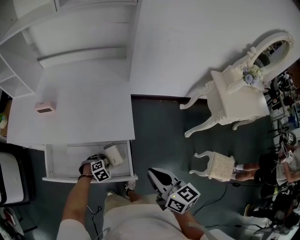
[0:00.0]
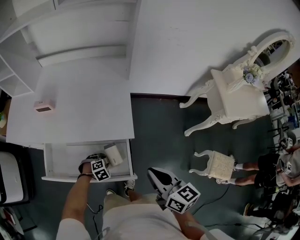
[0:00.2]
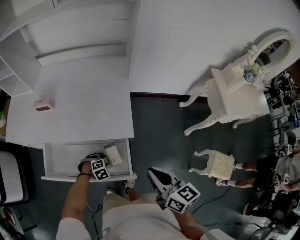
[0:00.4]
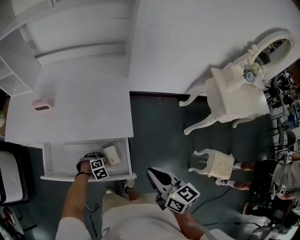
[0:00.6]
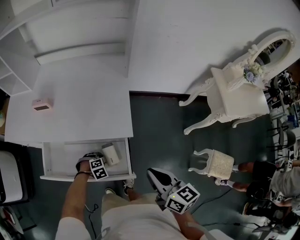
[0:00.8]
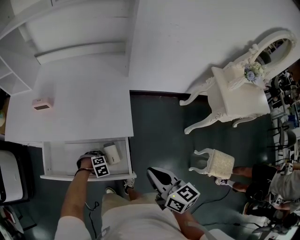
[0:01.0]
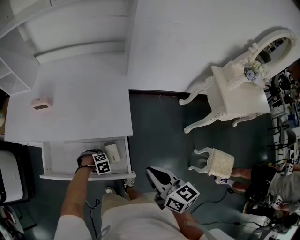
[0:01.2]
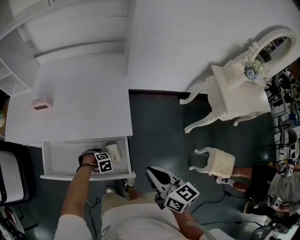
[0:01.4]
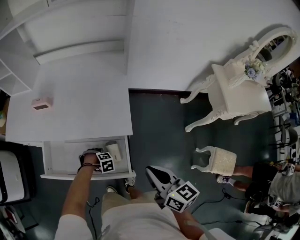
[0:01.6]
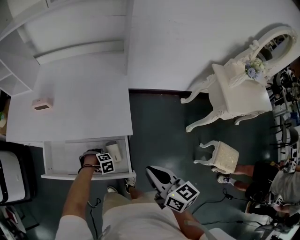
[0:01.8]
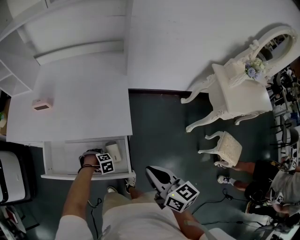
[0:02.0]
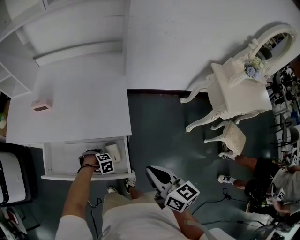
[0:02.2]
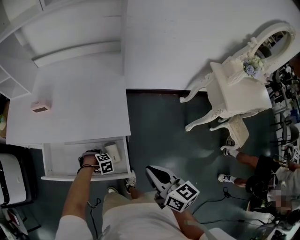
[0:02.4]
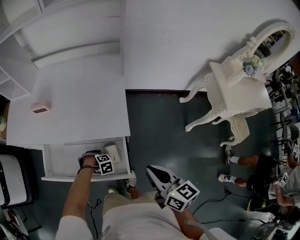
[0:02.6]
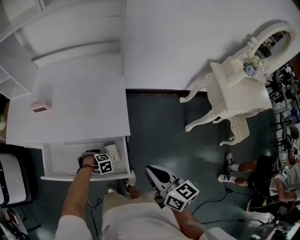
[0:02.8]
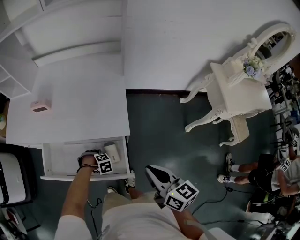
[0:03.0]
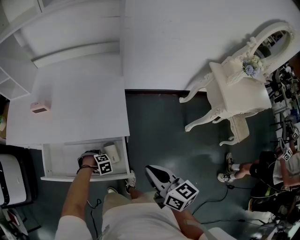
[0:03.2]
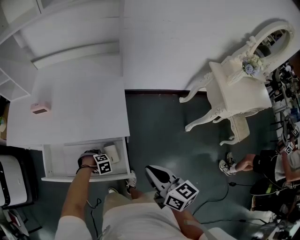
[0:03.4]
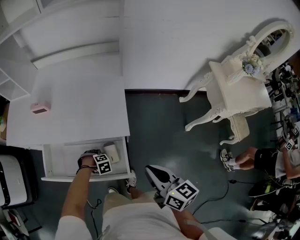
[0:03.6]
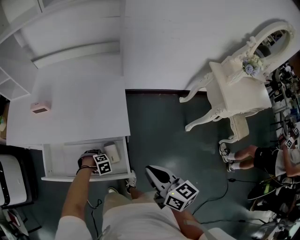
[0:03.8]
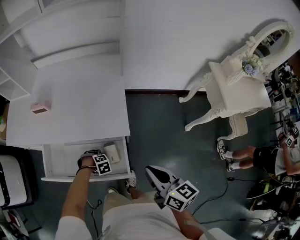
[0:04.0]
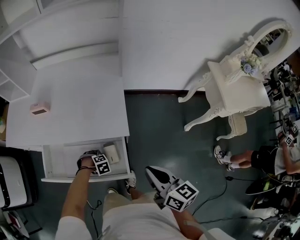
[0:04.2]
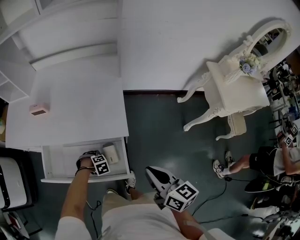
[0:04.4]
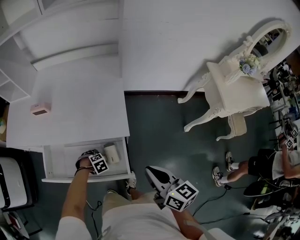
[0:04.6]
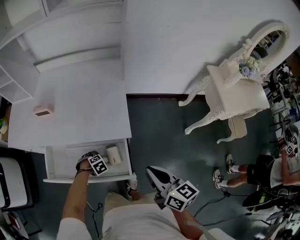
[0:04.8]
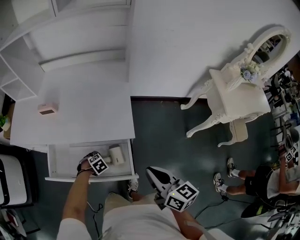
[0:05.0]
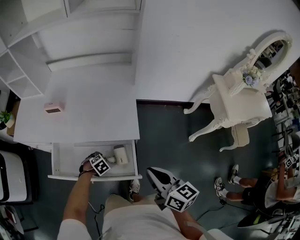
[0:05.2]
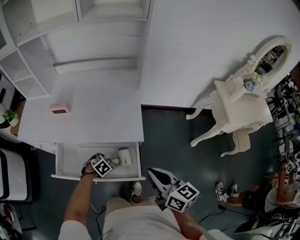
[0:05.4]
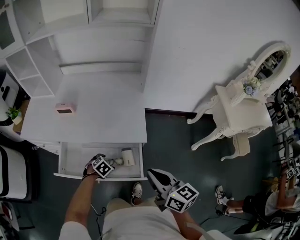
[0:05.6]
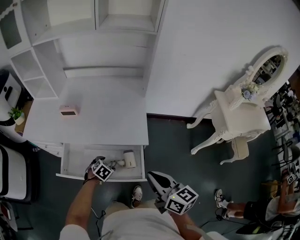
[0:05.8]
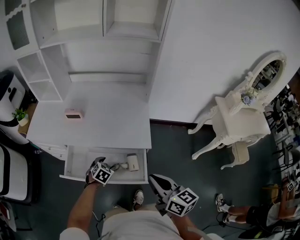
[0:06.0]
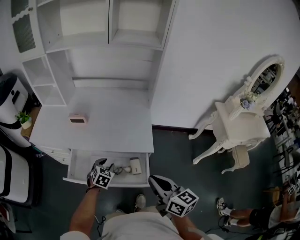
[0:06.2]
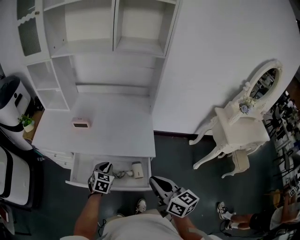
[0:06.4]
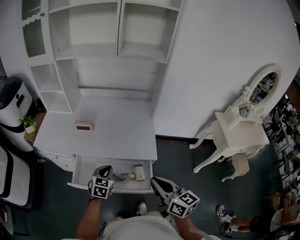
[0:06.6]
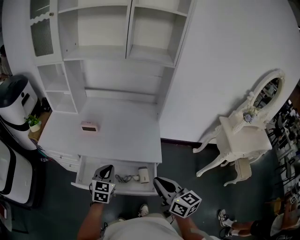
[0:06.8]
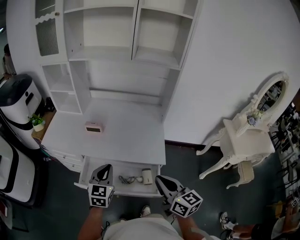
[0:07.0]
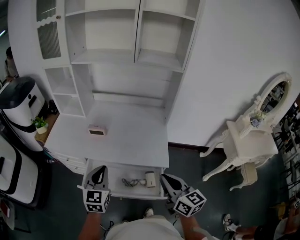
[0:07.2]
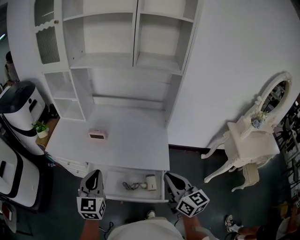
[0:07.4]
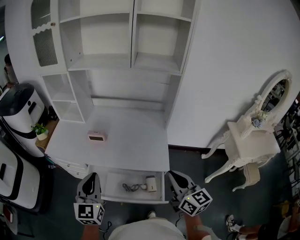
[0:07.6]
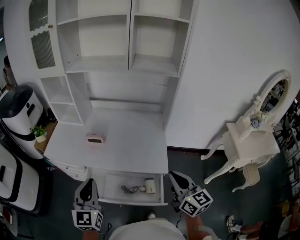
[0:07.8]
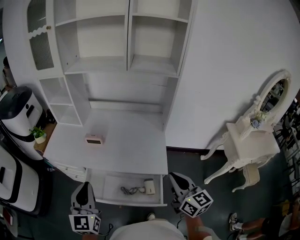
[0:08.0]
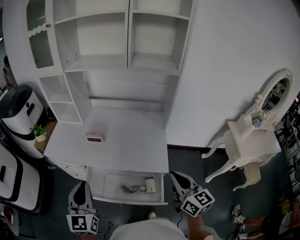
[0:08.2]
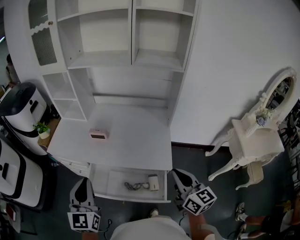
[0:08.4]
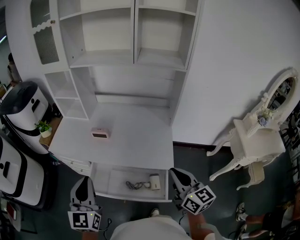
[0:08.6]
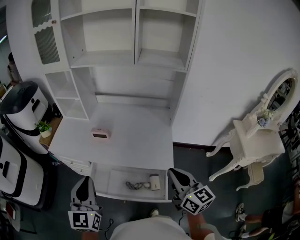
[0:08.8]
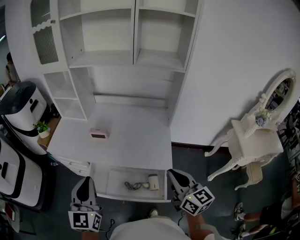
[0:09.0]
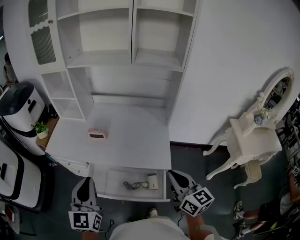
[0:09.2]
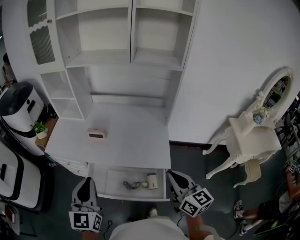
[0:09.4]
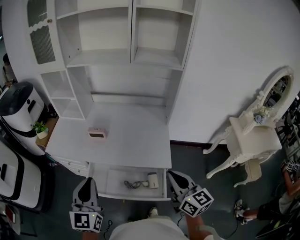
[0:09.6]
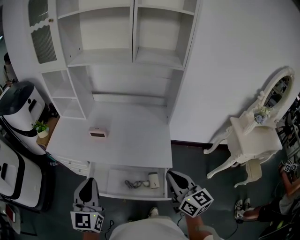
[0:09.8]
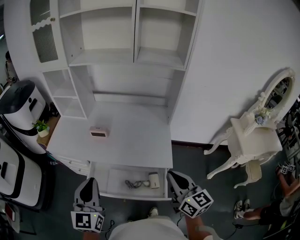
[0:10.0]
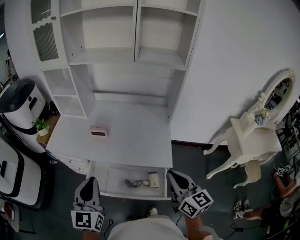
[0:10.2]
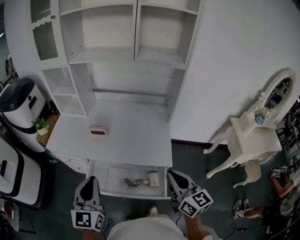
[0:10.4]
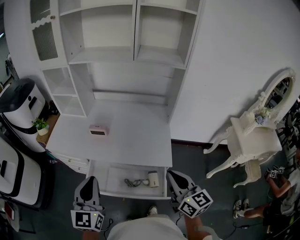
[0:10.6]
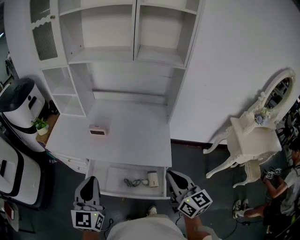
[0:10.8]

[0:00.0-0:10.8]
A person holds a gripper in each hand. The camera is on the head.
0:00.0 to 0:01.6: The left gripper turns by approximately 30 degrees.
0:01.6 to 0:03.0: Both grippers stay put.
0:03.0 to 0:04.6: The left gripper opens up.
0:04.6 to 0:06.2: The right gripper ends up roughly 15 cm from where it was; the left gripper heads upward, covering some 20 cm, points its fingers about 40 degrees further upward, and closes up.
0:06.2 to 0:07.8: The left gripper goes approximately 35 cm upward and to the left, tips its fingers upward by about 50 degrees, and closes up. The right gripper shifts some 10 cm forward and upward.
0:07.8 to 0:10.8: The grippers make only small movements.

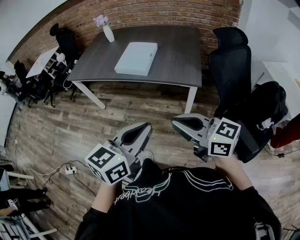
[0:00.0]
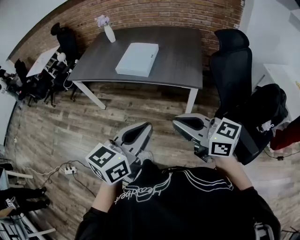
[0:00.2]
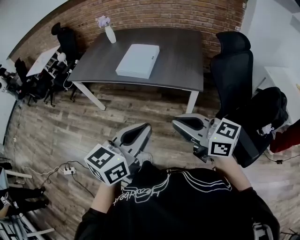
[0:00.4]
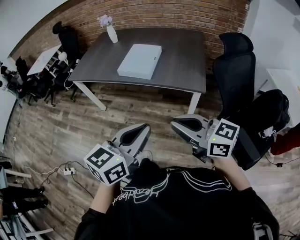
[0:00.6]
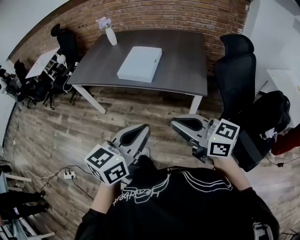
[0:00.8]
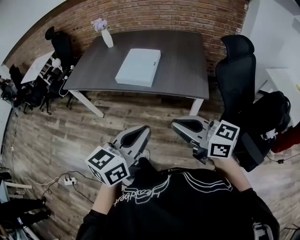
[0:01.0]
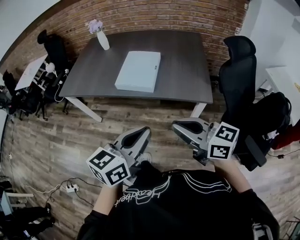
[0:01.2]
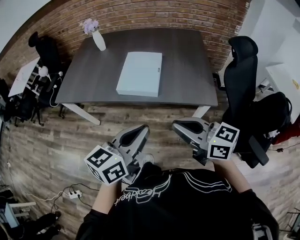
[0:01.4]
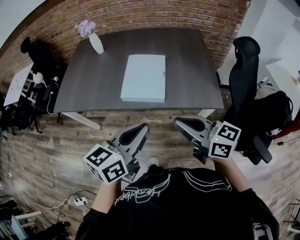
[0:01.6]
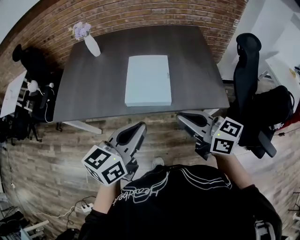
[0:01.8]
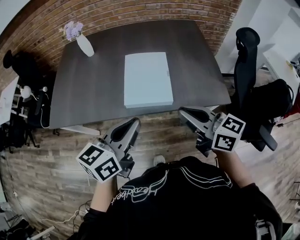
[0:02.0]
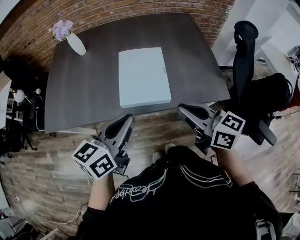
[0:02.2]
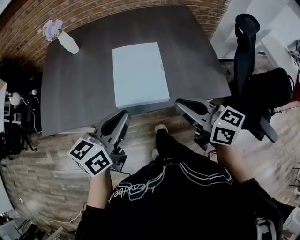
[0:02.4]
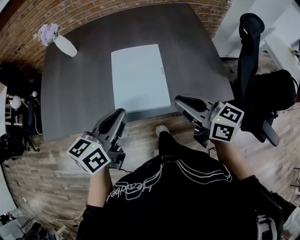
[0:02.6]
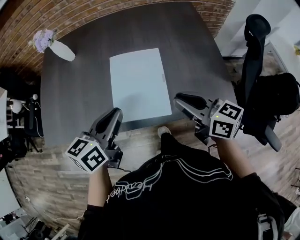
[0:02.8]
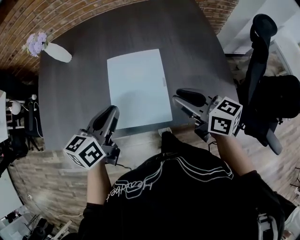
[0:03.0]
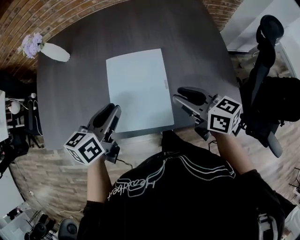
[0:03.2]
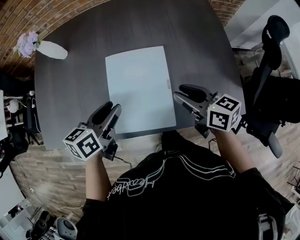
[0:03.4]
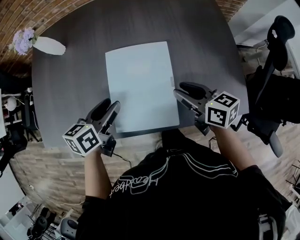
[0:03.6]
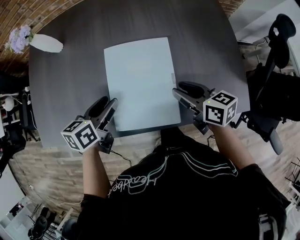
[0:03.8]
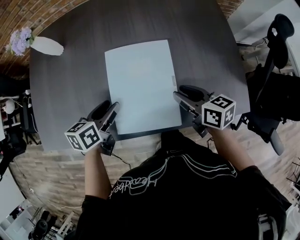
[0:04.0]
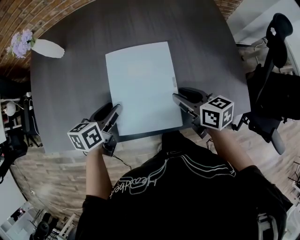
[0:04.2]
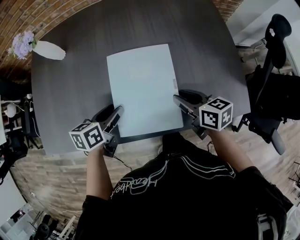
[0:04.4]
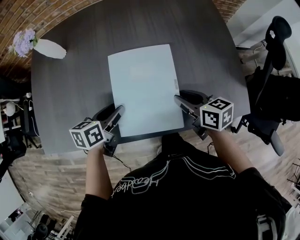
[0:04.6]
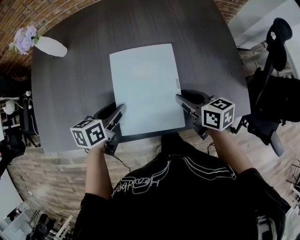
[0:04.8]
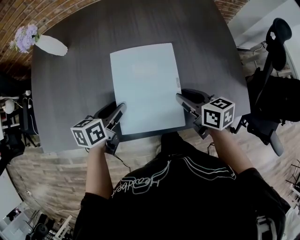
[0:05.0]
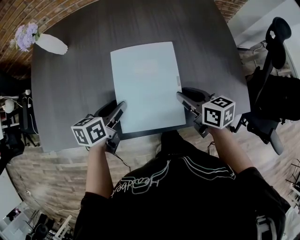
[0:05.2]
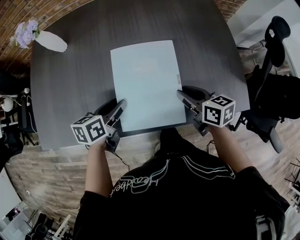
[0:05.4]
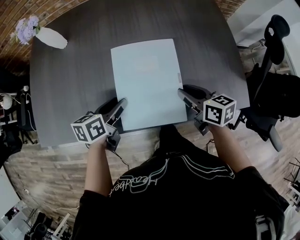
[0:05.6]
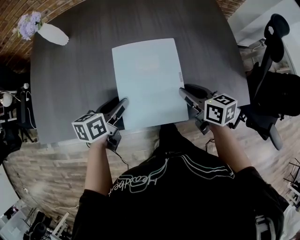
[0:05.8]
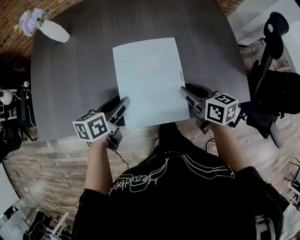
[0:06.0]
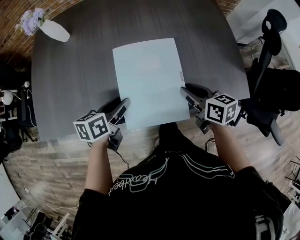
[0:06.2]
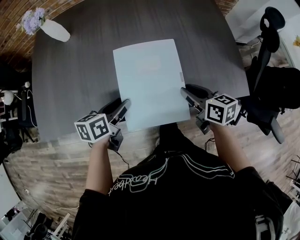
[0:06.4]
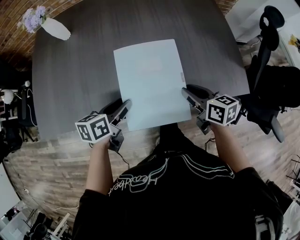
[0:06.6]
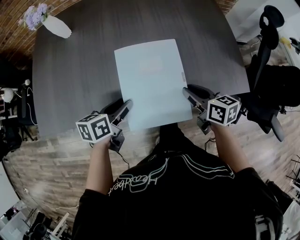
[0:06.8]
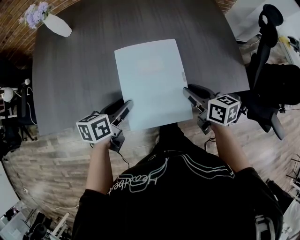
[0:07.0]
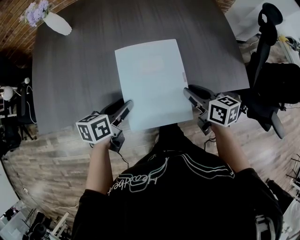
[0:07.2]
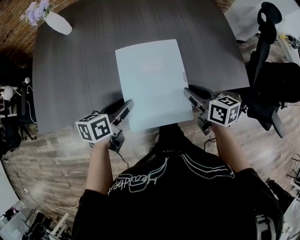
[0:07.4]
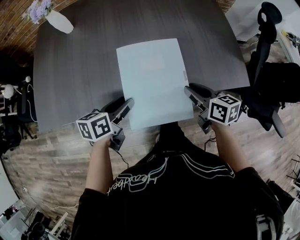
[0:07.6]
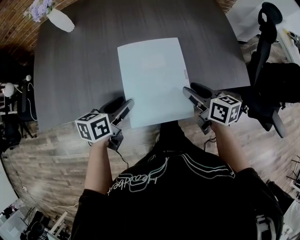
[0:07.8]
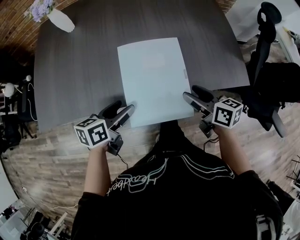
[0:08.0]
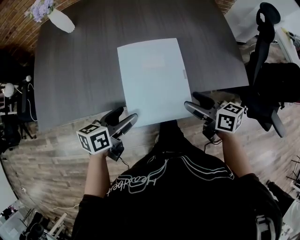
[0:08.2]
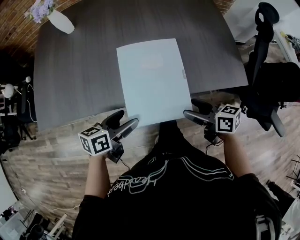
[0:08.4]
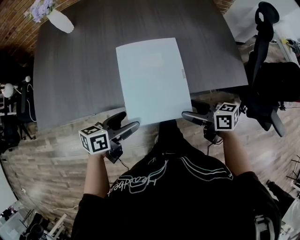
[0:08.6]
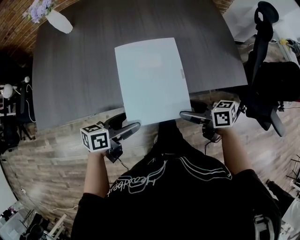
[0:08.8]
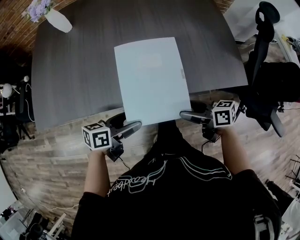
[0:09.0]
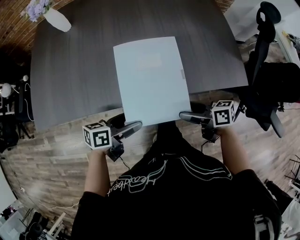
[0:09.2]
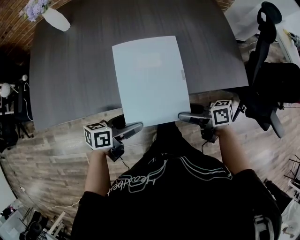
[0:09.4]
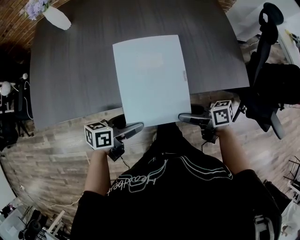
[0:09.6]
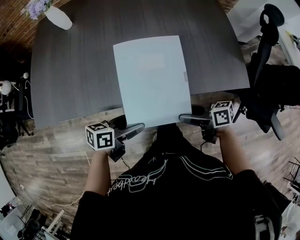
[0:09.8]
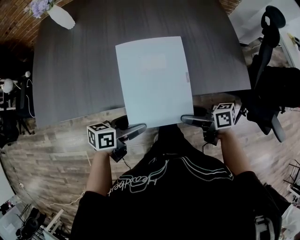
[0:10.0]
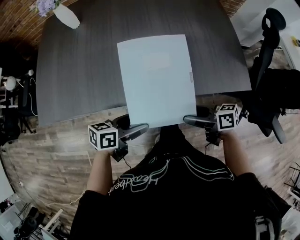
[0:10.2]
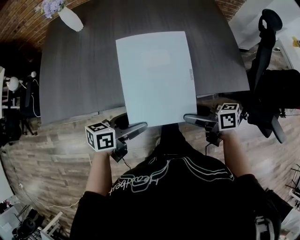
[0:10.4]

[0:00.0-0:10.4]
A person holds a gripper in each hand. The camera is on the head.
0:00.0 to 0:01.4: Both grippers move forward and to the left, approximately 25 cm.
0:01.4 to 0:03.0: Both grippers travel together forward, approximately 35 cm. The right gripper turns by some 20 degrees.
0:03.0 to 0:04.4: Both grippers travel together downward, about 15 cm. The left gripper opens.
0:04.4 to 0:06.0: The left gripper goes about 5 cm backward.
0:06.0 to 0:07.4: Both grippers move backward, about 10 cm.
0:07.4 to 0:09.0: The left gripper moves some 10 cm, and opens up. The right gripper ends up about 10 cm from where it was, swivels about 30 degrees, and opens its fingers.
0:09.0 to 0:10.4: The grippers move only a little.

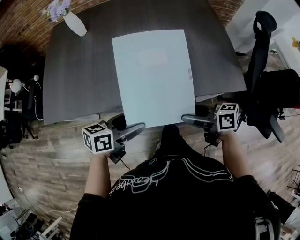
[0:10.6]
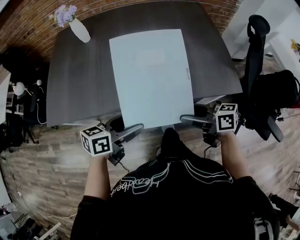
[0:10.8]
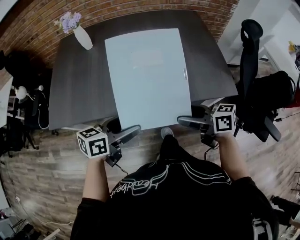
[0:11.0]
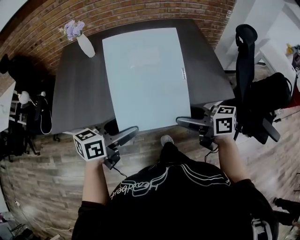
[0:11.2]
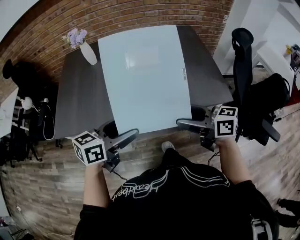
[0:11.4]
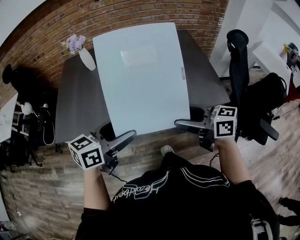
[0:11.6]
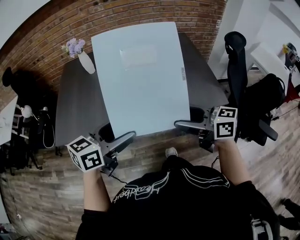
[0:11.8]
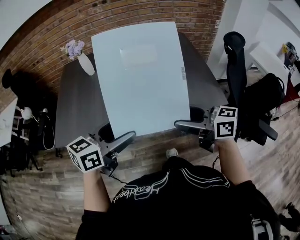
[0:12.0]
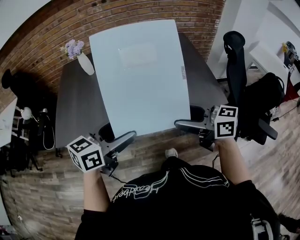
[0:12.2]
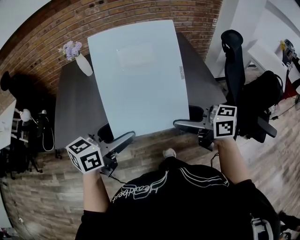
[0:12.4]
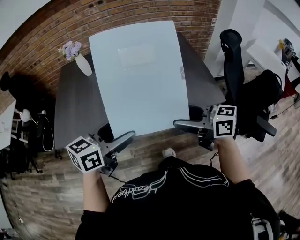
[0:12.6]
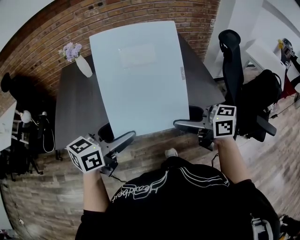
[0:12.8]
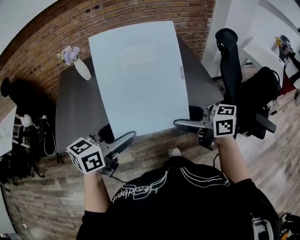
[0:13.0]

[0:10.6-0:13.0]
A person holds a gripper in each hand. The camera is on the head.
0:10.6 to 0:11.8: The two grippers go roughly 20 cm upward. The left gripper turns by roughly 20 degrees, while the right gripper rotates approximately 30 degrees.
0:11.8 to 0:13.0: The grippers stay close to where they were, moving slightly.
